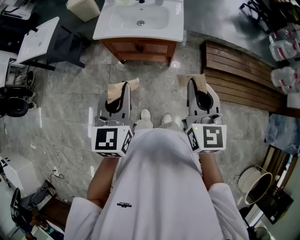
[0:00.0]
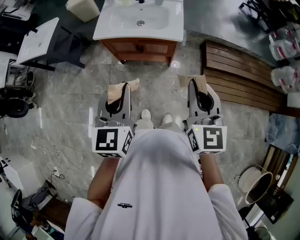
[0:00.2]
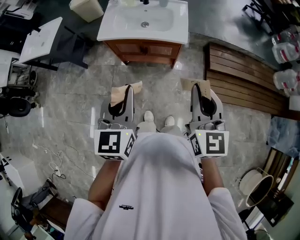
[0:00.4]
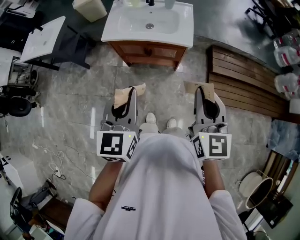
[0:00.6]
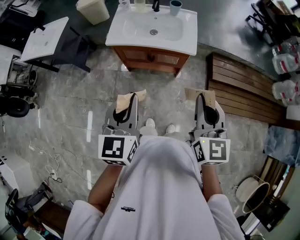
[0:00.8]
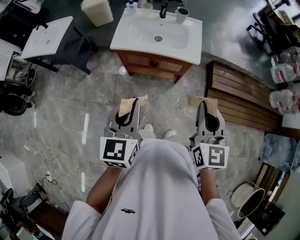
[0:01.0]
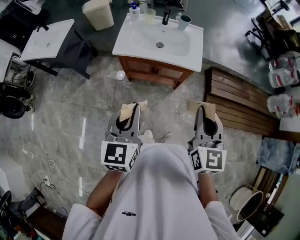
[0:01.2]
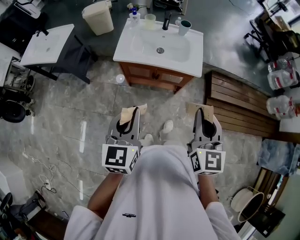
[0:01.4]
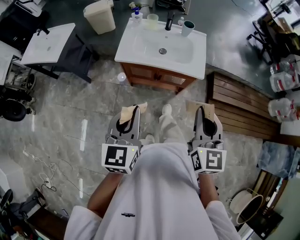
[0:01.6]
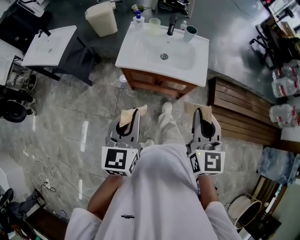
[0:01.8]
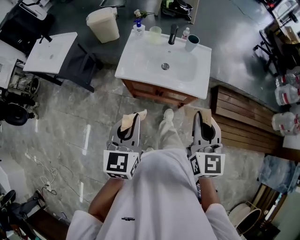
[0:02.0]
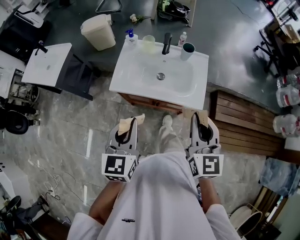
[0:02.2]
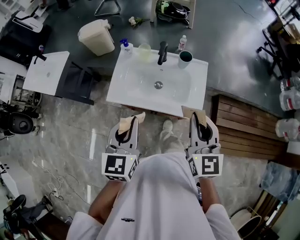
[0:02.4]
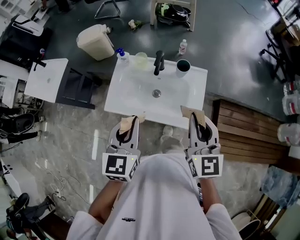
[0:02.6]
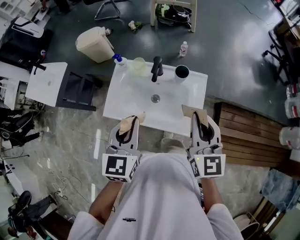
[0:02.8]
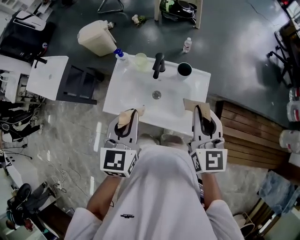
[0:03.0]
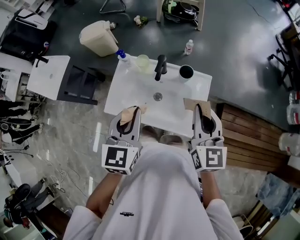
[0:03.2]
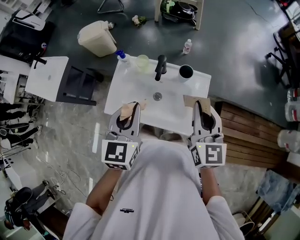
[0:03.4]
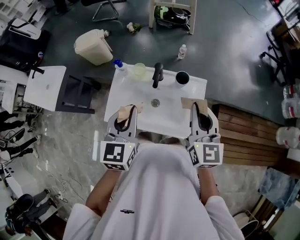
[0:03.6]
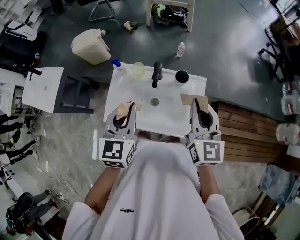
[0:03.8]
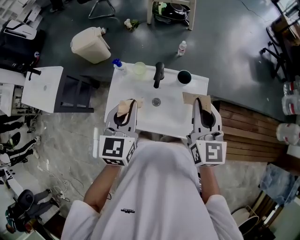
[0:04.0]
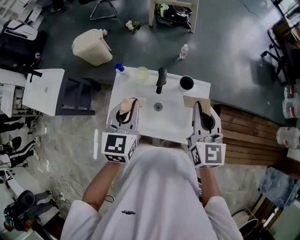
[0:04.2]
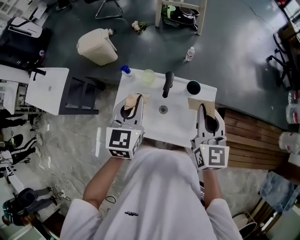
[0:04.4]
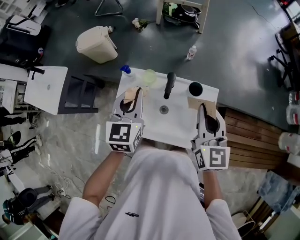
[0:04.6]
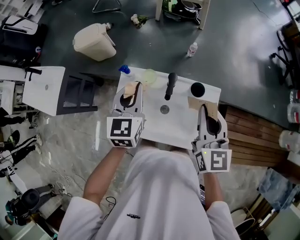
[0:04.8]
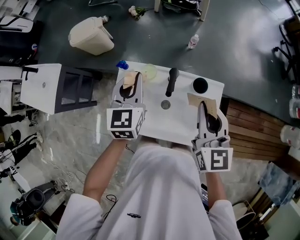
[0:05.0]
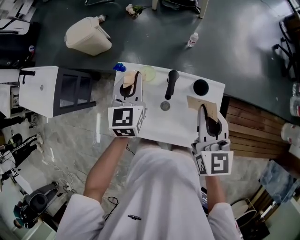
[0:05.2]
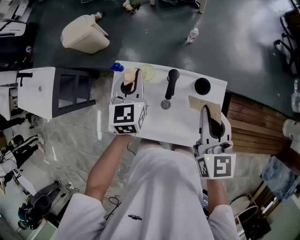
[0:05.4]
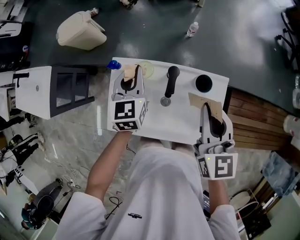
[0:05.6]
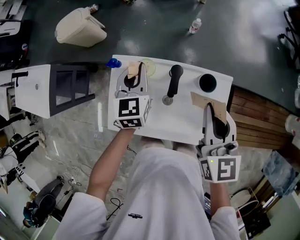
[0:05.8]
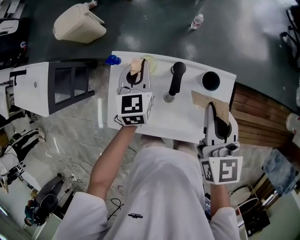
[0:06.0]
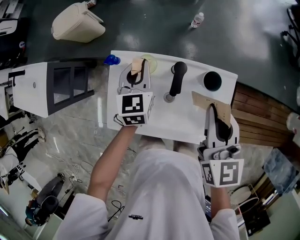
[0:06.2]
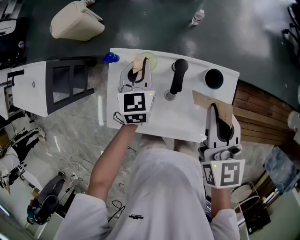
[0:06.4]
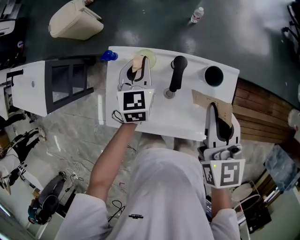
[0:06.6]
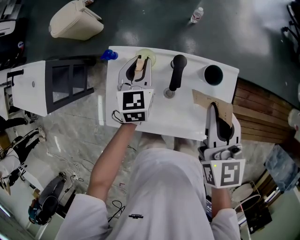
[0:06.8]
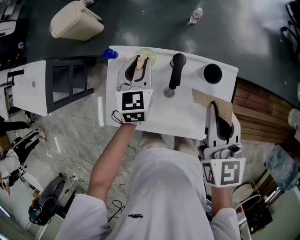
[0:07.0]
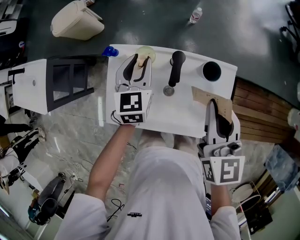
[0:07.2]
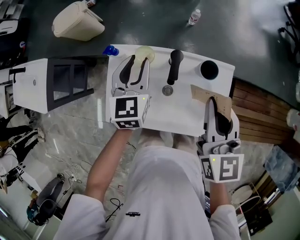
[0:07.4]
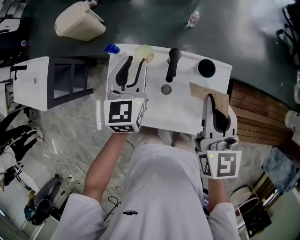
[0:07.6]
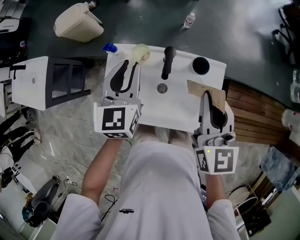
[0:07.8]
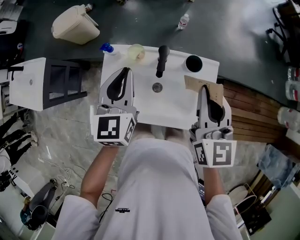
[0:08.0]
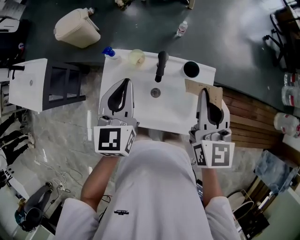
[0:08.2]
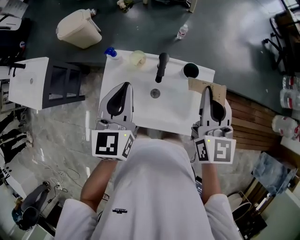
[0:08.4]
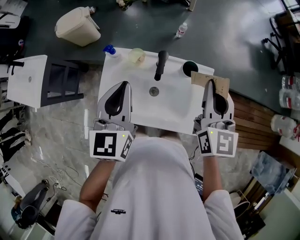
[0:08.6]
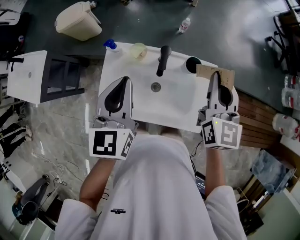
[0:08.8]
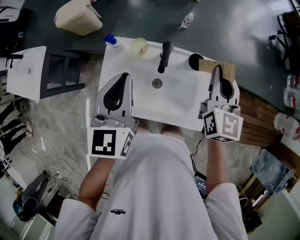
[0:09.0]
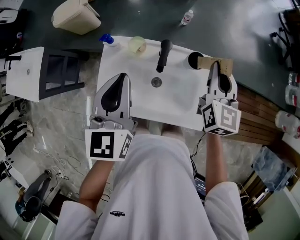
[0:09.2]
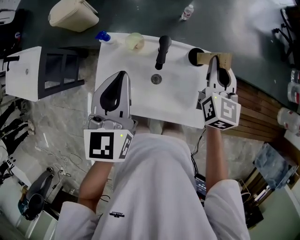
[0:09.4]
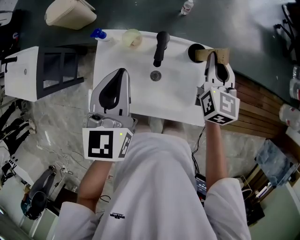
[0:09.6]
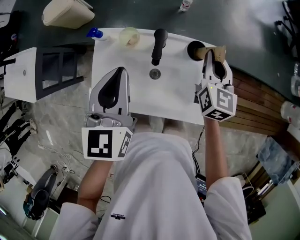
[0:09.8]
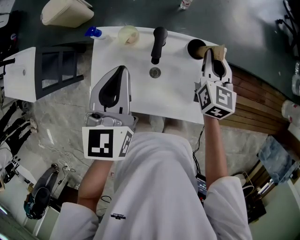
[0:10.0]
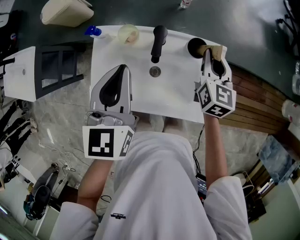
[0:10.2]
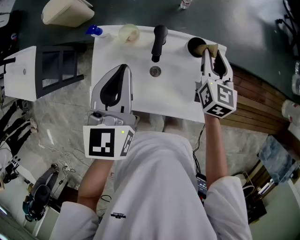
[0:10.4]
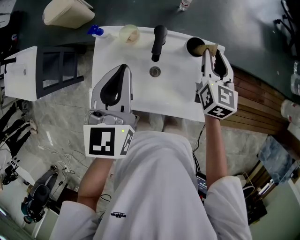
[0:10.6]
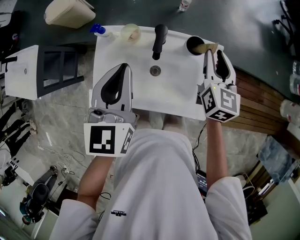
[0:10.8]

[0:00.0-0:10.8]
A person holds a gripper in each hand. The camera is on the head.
0:00.0 to 0:01.6: Both grippers move to the left and forward, approximately 15 cm.
0:01.6 to 0:03.0: Both grippers move forward, roughly 35 cm.
0:03.0 to 0:04.6: The right gripper goes roughly 10 cm forward and to the left; the left gripper heads forward, covering roughly 20 cm.
0:04.6 to 0:06.2: The right gripper goes some 10 cm downward and forward, while the left gripper travels downward and forward by approximately 20 cm.
0:06.2 to 0:07.8: The right gripper changes place by roughly 5 cm; the left gripper shifts approximately 15 cm upward and backward, and opens.
0:07.8 to 0:09.2: The left gripper heads backward and upward, covering approximately 10 cm, and closes. Meanwhile the right gripper shifts some 10 cm forward and to the right.
0:09.2 to 0:10.8: The right gripper heads downward, covering about 5 cm.

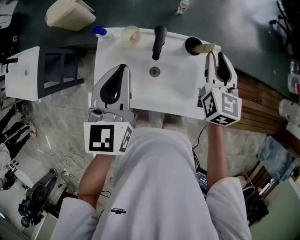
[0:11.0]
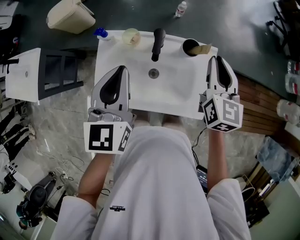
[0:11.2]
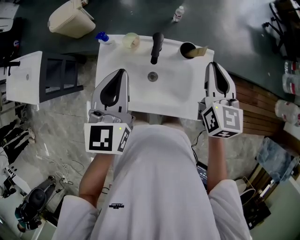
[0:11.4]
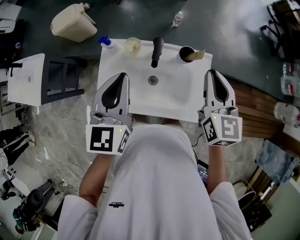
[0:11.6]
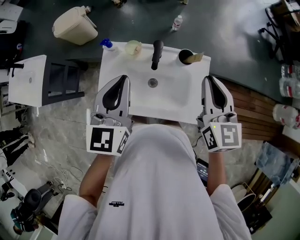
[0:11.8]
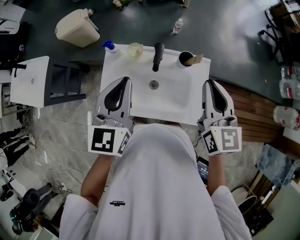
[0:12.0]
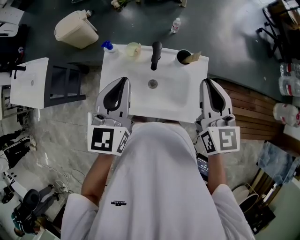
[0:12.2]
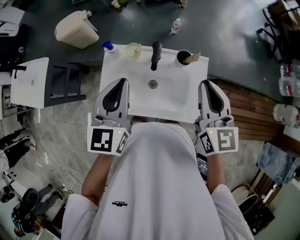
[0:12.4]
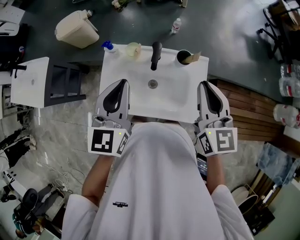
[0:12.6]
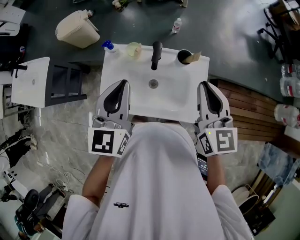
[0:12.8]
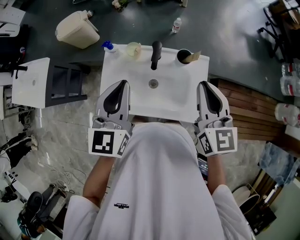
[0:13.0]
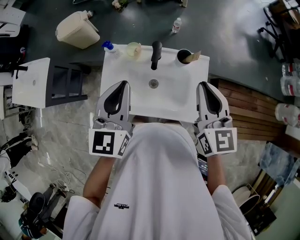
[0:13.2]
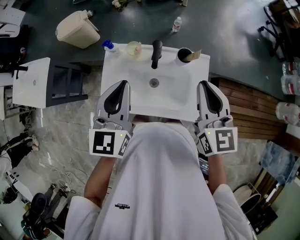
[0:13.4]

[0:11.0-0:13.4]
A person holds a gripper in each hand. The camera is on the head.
0:11.0 to 0:12.2: The left gripper travels upward by some 5 cm, while the right gripper travels upward and backward by about 15 cm.
0:12.2 to 0:13.4: The grippers move only a little.

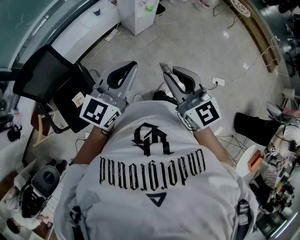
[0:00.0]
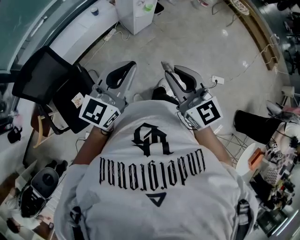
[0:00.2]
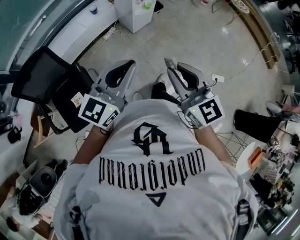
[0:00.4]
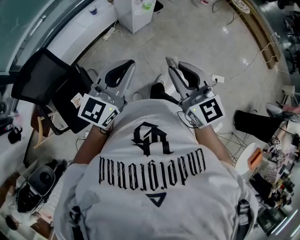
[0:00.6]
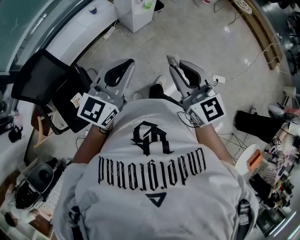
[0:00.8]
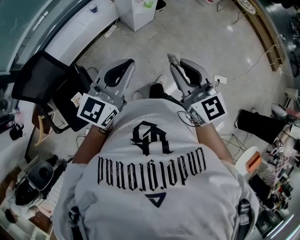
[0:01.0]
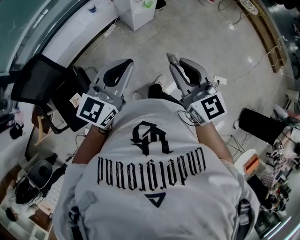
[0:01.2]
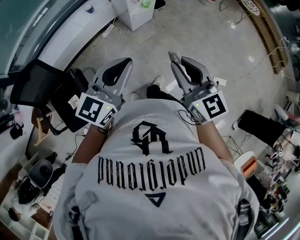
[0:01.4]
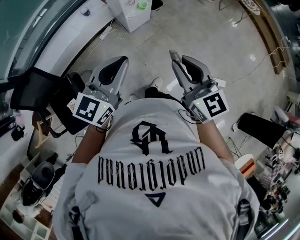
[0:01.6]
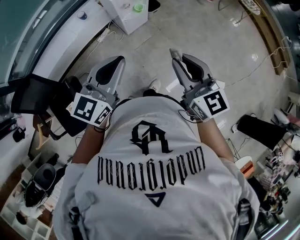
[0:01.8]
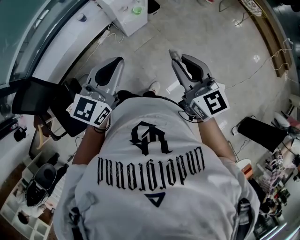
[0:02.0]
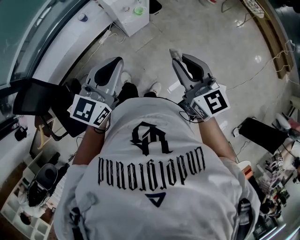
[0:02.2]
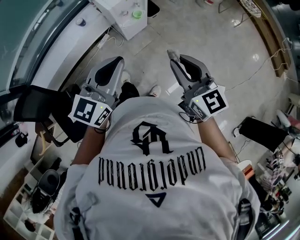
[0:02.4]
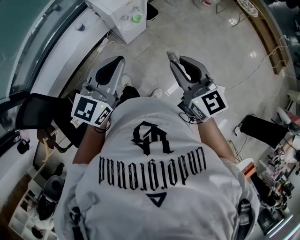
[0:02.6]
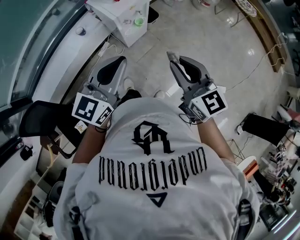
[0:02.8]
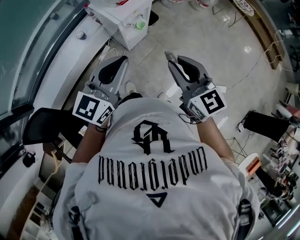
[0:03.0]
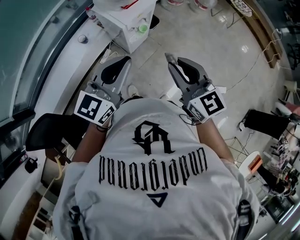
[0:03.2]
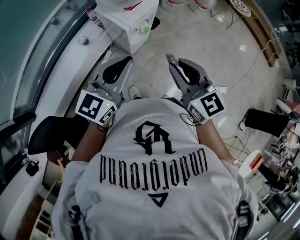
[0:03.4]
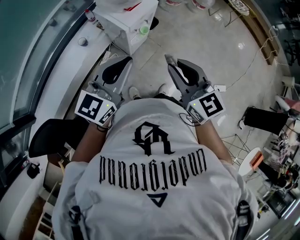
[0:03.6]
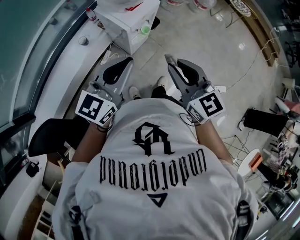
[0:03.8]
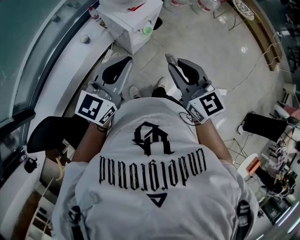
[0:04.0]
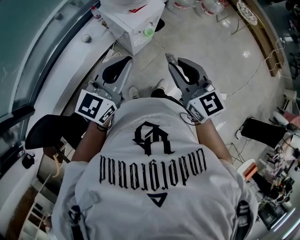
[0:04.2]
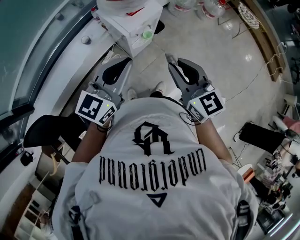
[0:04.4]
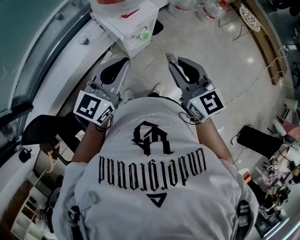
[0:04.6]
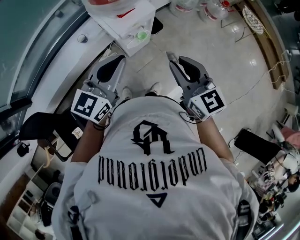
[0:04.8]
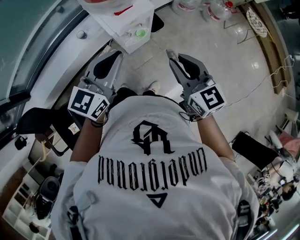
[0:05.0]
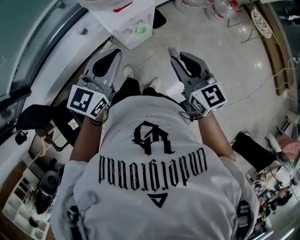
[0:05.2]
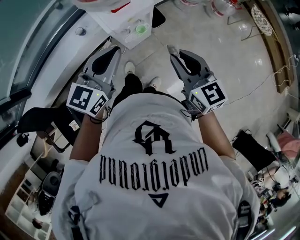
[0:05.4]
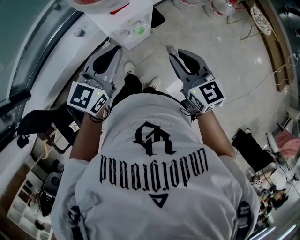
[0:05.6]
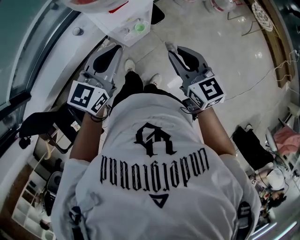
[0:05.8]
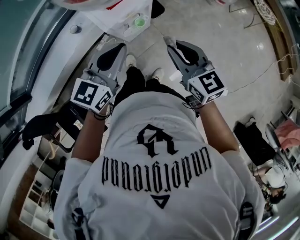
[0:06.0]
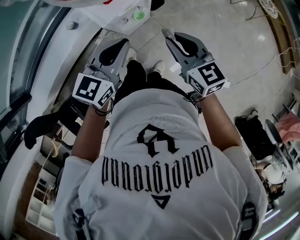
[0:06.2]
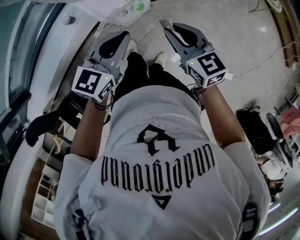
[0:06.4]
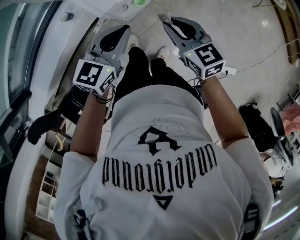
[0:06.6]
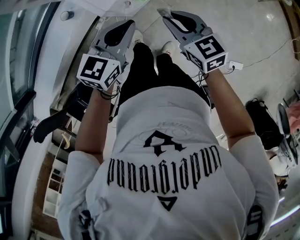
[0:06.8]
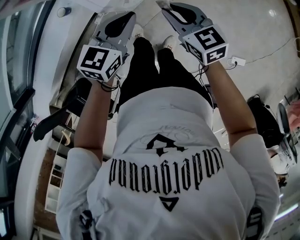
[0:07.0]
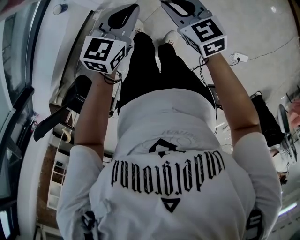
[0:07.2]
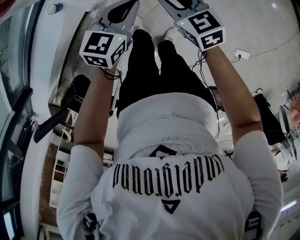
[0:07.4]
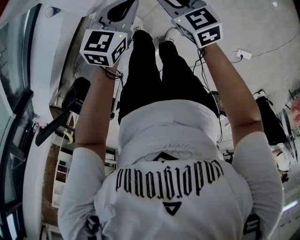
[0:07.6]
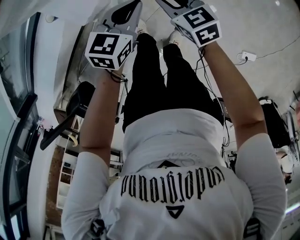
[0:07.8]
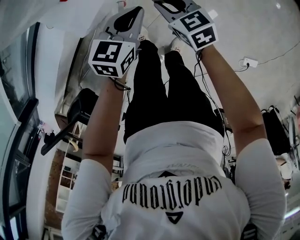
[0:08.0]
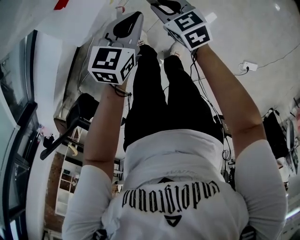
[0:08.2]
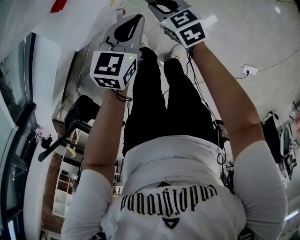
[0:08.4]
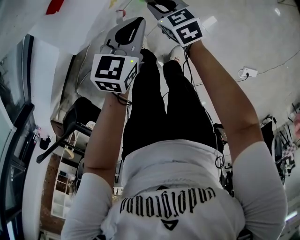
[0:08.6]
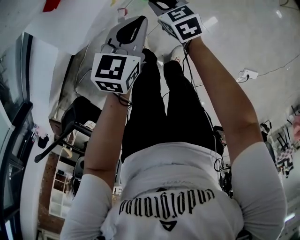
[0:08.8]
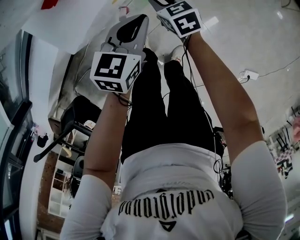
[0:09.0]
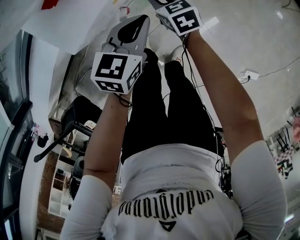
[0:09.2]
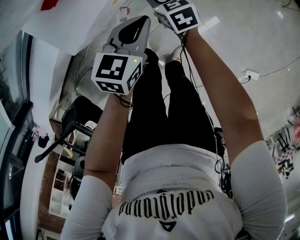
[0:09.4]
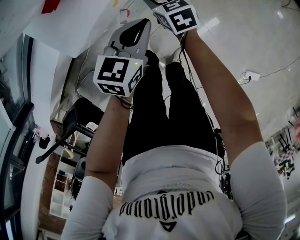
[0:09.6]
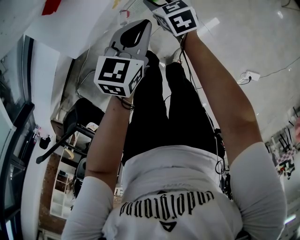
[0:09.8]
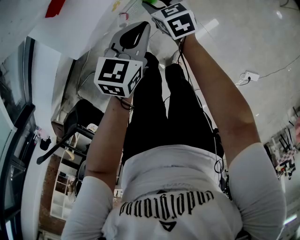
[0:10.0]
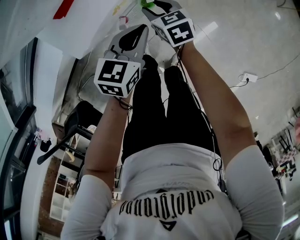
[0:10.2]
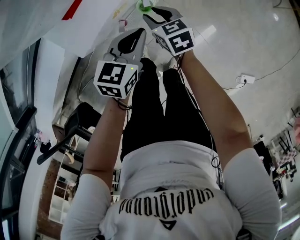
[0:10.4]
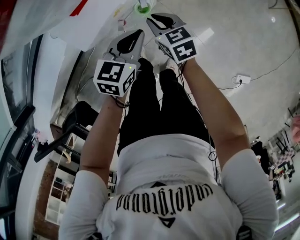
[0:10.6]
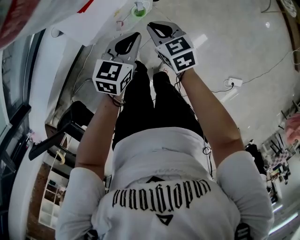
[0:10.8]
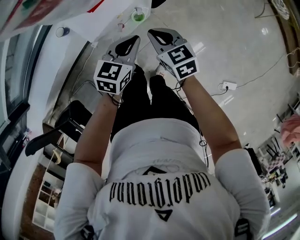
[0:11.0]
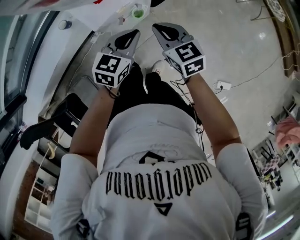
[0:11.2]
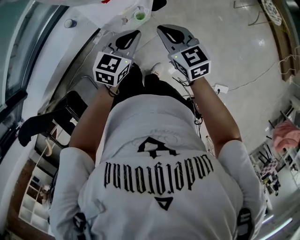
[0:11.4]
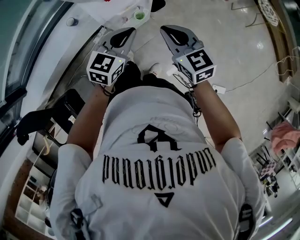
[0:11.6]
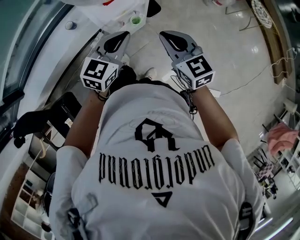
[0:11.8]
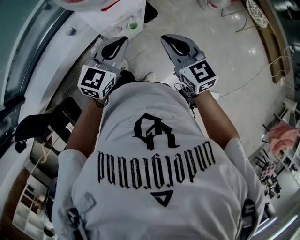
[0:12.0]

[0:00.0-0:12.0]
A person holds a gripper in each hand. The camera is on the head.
0:00.0 to 0:01.6: Both grippers move forward and to the right, approximately 20 cm.
0:01.6 to 0:03.0: Both grippers move forward, about 20 cm.
0:03.0 to 0:04.4: The two grippers go about 5 cm forward.
0:04.4 to 0:06.0: Both grippers travel together forward, to the right and downward, approximately 15 cm.
0:06.0 to 0:07.6: The right gripper goes approximately 30 cm downward and forward. Meanwhile the left gripper is displaced downward by about 30 cm.
0:07.6 to 0:09.0: The right gripper goes roughly 20 cm downward and forward; the left gripper travels downward by roughly 10 cm.
0:09.0 to 0:10.4: The right gripper is displaced upward by about 5 cm.
0:10.4 to 0:12.0: The grippers both shift upward by some 35 cm. The left gripper changes its angle by about 20 degrees. Meanwhile the right gripper turns by some 30 degrees, and closes up.
